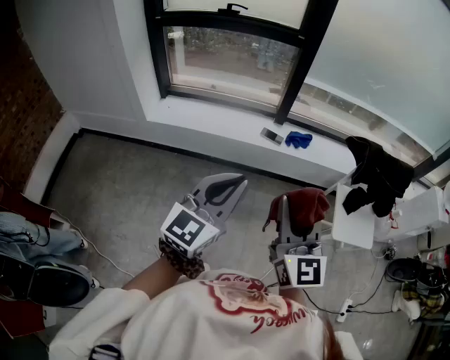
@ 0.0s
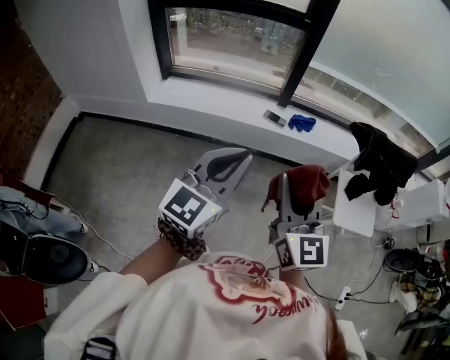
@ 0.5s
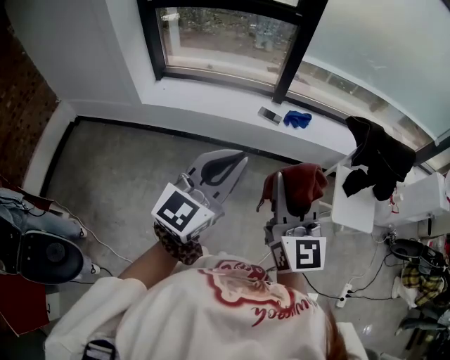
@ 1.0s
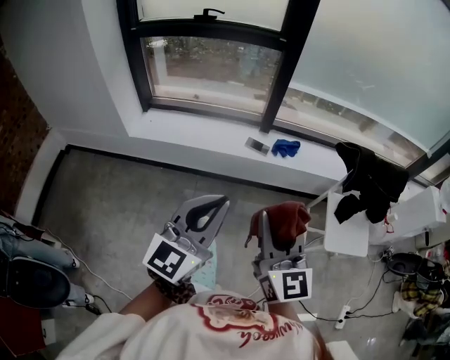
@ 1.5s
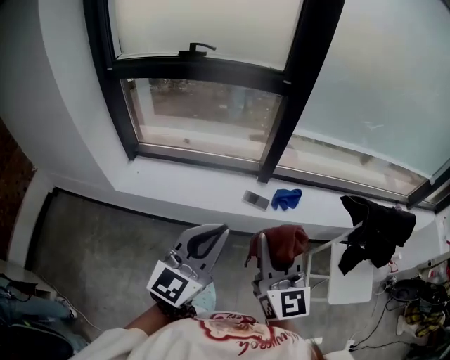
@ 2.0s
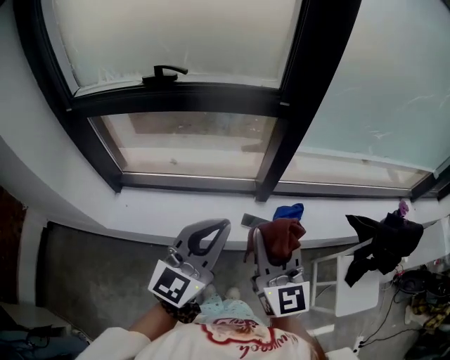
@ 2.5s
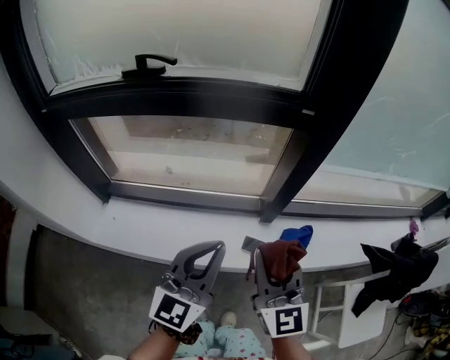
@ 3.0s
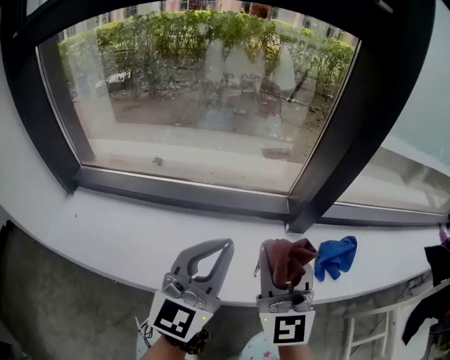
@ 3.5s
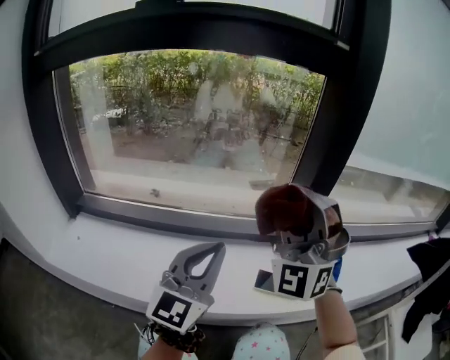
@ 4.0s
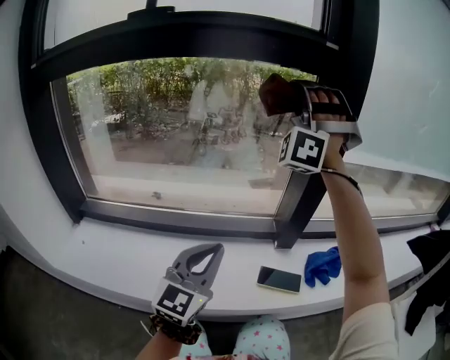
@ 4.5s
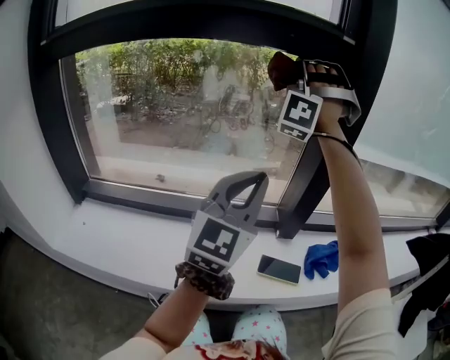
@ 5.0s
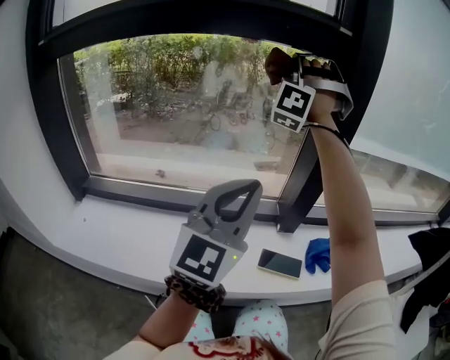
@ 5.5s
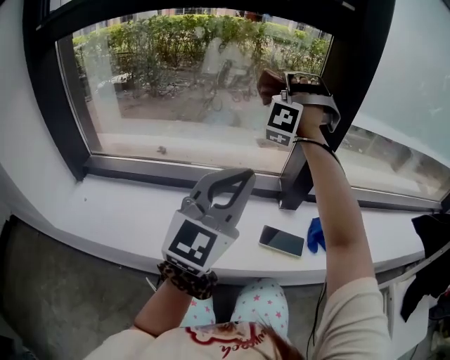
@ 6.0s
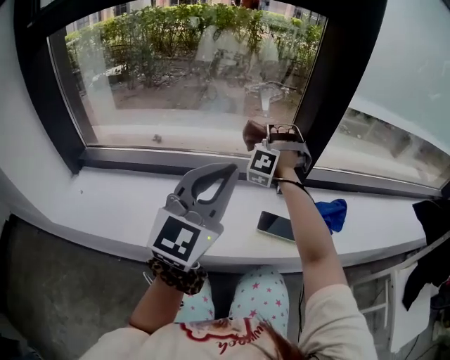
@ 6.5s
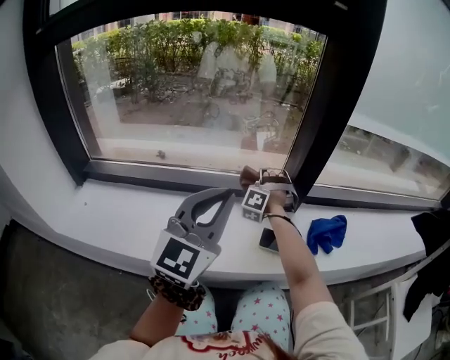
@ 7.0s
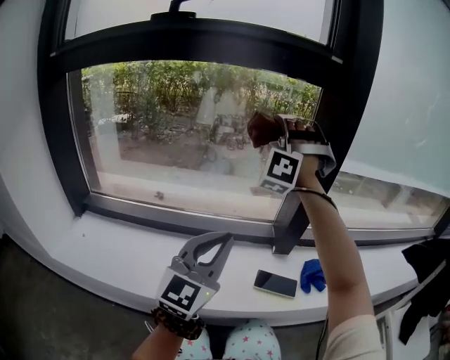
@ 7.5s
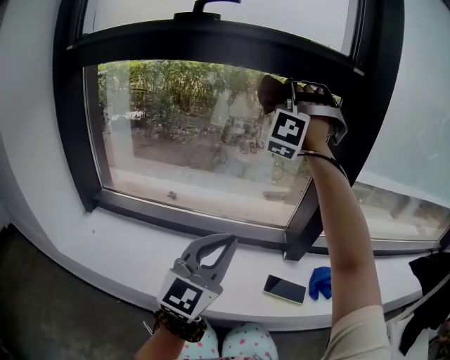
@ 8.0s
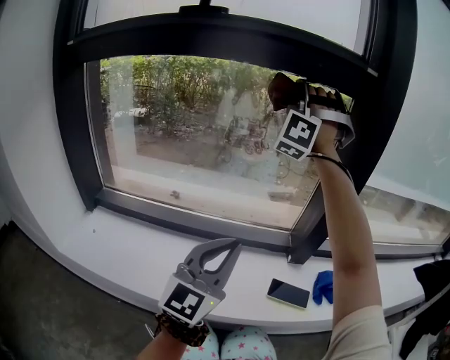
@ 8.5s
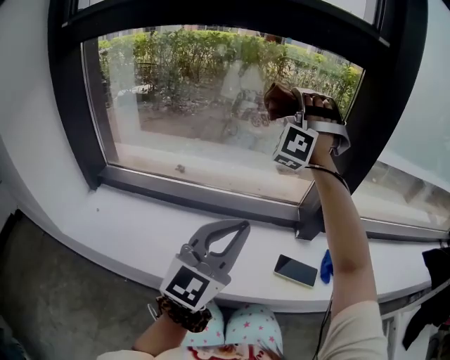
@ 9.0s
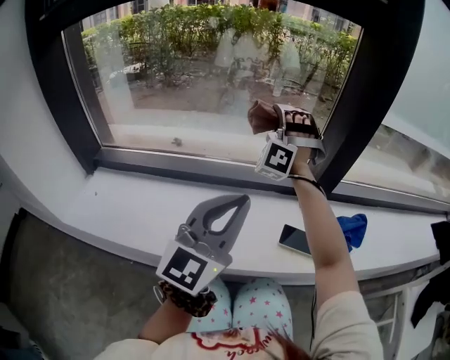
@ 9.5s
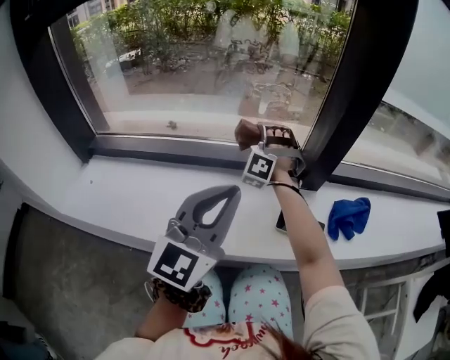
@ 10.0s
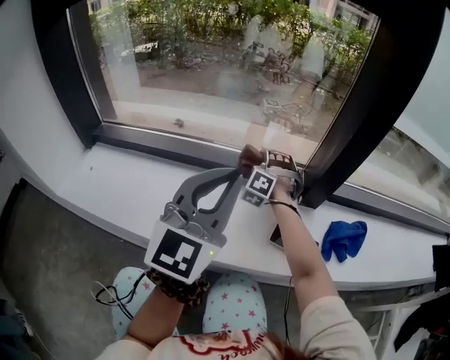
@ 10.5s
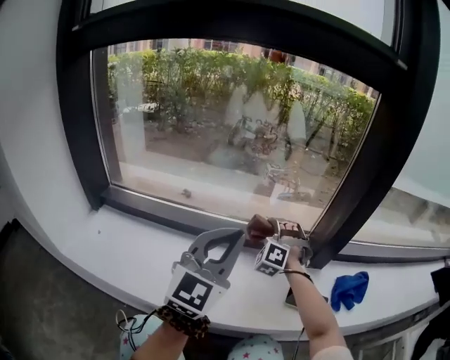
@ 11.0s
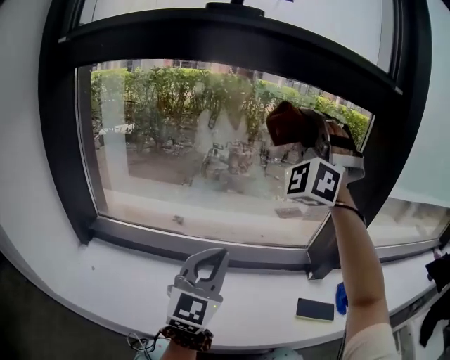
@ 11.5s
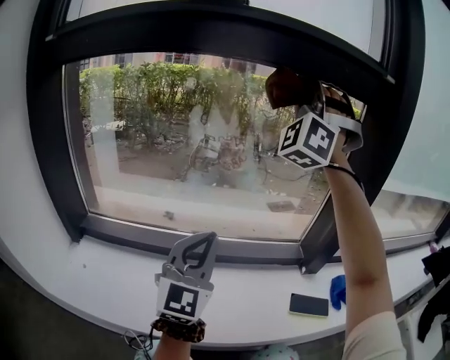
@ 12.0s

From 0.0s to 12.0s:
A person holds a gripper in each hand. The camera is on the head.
From 0.0s to 2.0s: The left gripper ends up about 30 cm from where it was.
From 2.0s to 4.0s: The left gripper shifts by about 50 cm.
From 4.0s to 6.0s: The left gripper is displaced upward by roughly 5 cm.
From 6.0s to 8.0s: The left gripper moves some 5 cm.
From 8.0s to 10.0s: The left gripper changes place by some 5 cm.
From 10.0s to 12.0s: The left gripper changes place by approximately 20 cm.

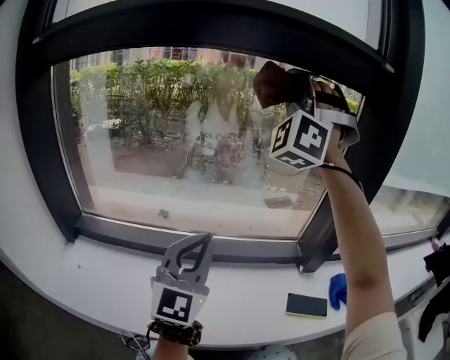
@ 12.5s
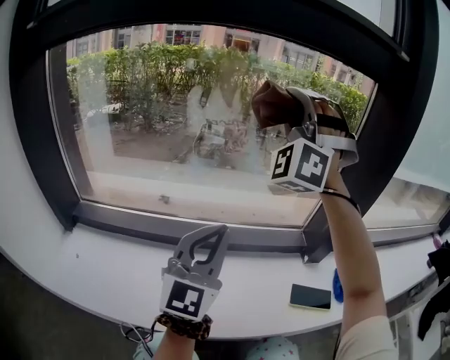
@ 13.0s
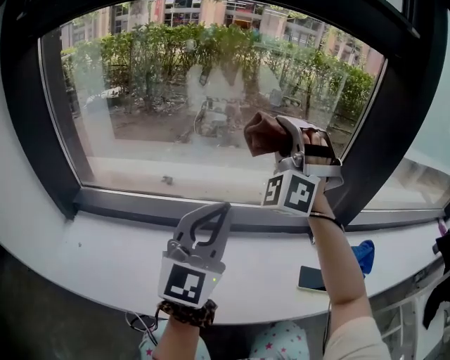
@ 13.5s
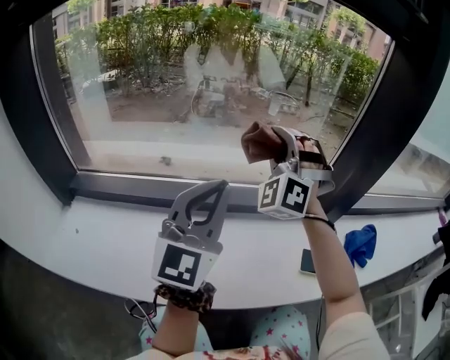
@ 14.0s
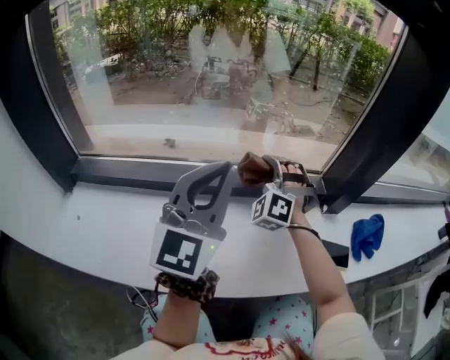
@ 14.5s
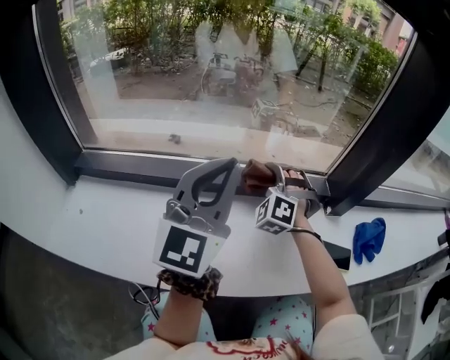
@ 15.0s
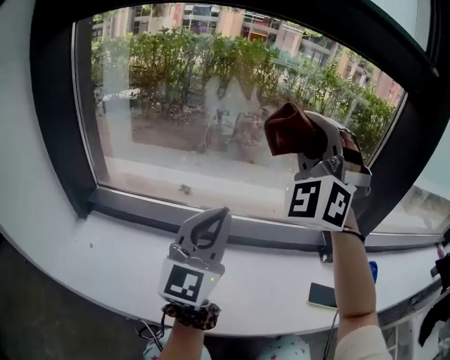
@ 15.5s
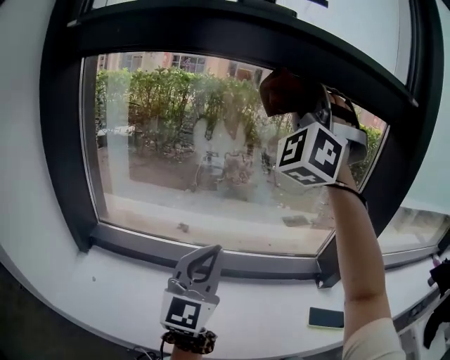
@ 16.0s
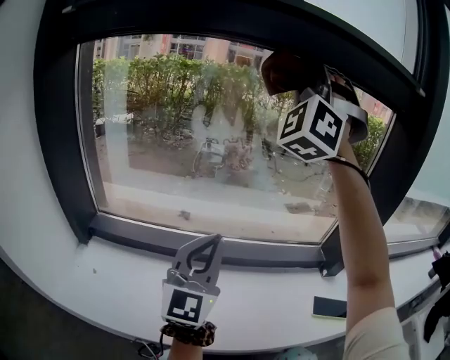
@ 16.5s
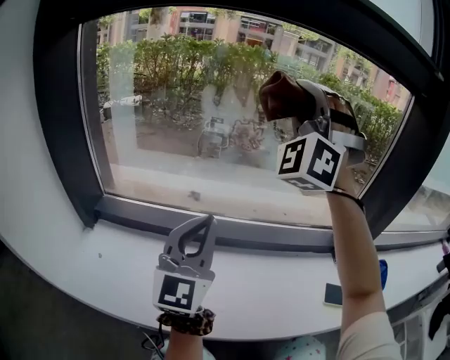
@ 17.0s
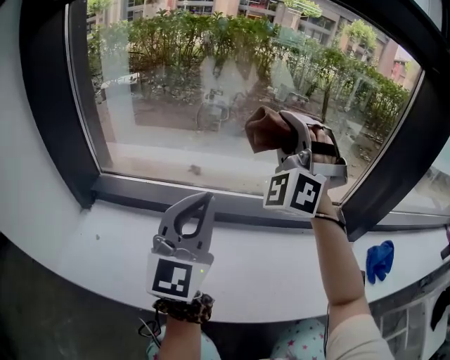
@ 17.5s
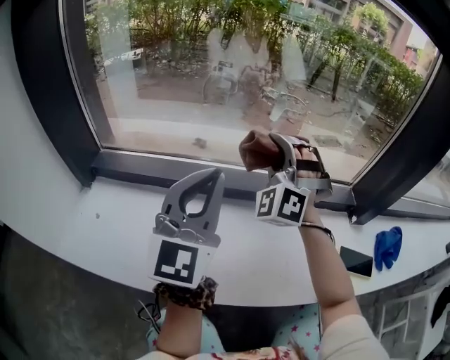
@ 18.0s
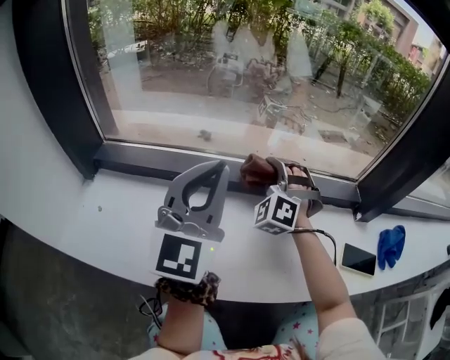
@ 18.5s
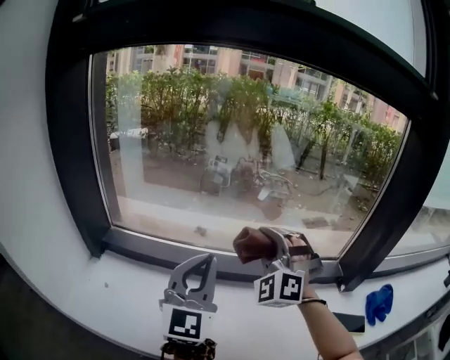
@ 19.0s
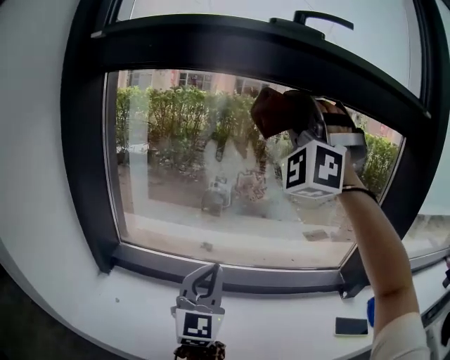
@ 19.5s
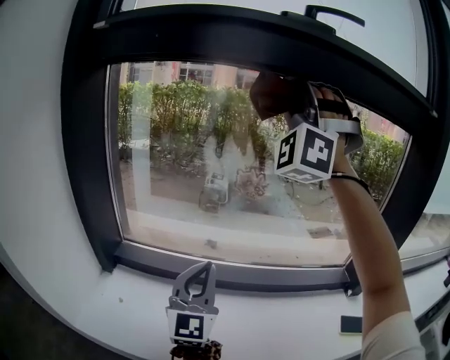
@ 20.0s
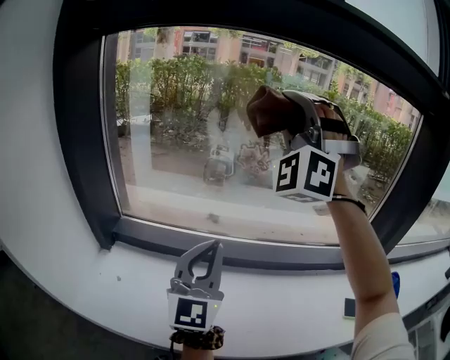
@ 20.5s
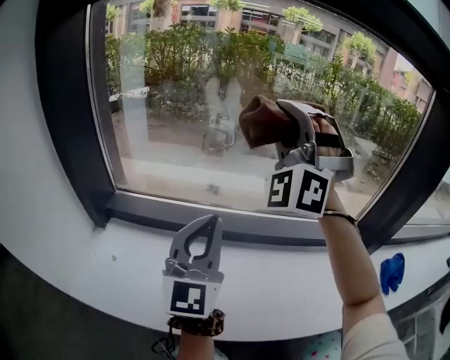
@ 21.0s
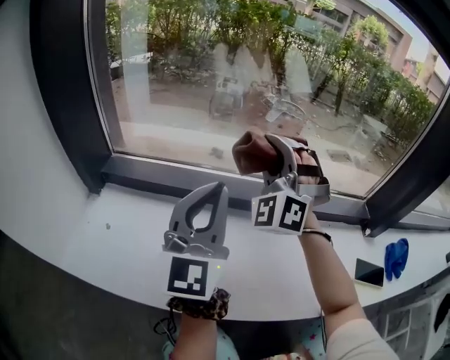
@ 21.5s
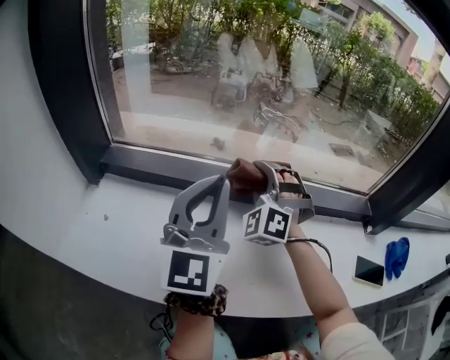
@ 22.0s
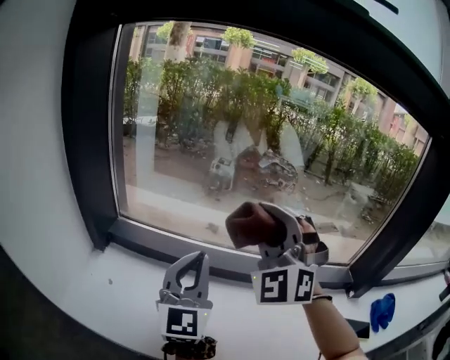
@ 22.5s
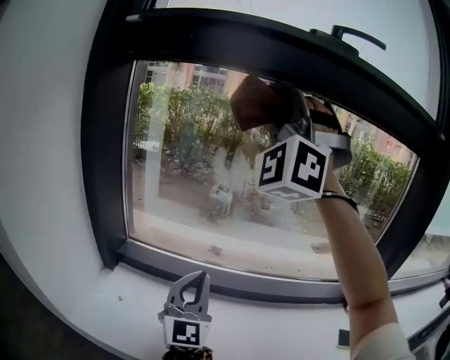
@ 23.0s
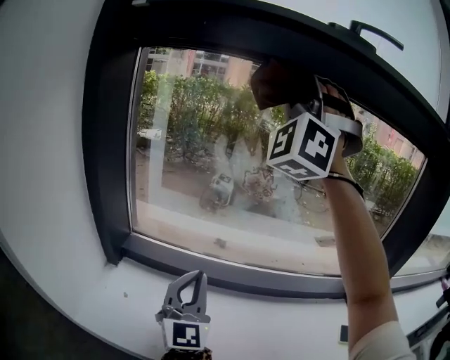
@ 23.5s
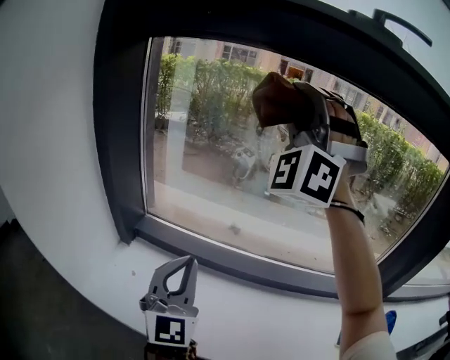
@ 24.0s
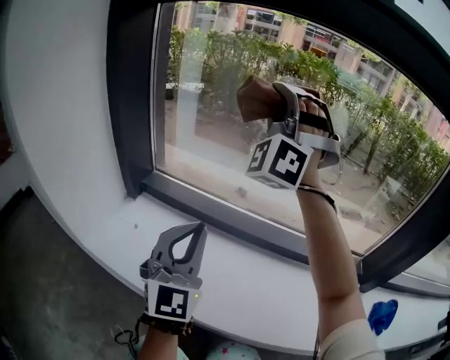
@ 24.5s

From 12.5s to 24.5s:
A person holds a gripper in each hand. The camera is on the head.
From 14.5s to 16.5s: The left gripper ends up approximately 10 cm from where it was.
From 18.5s to 20.5s: The left gripper moves roughly 5 cm.
From 22.5s to 24.5s: The left gripper changes place by approximately 10 cm, and turns by roughly 20 degrees.

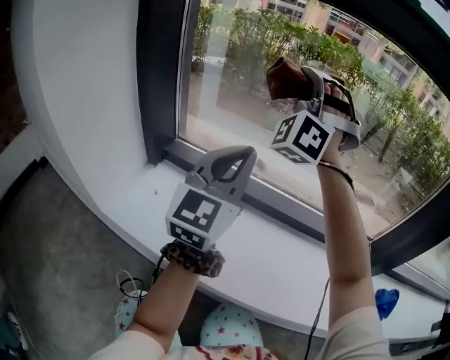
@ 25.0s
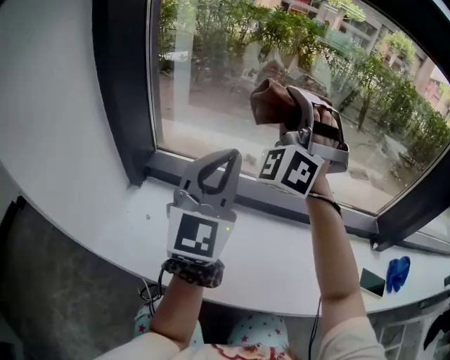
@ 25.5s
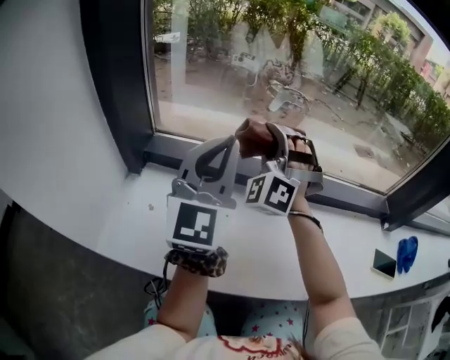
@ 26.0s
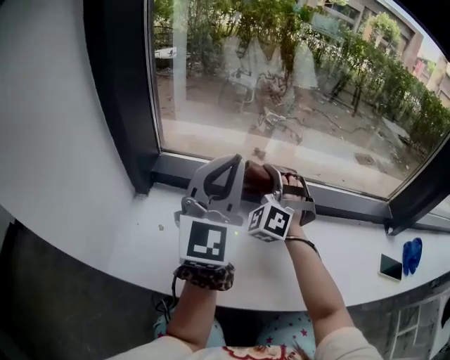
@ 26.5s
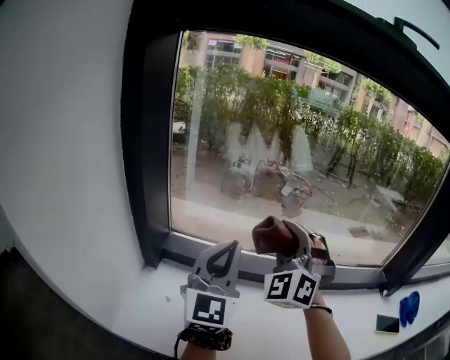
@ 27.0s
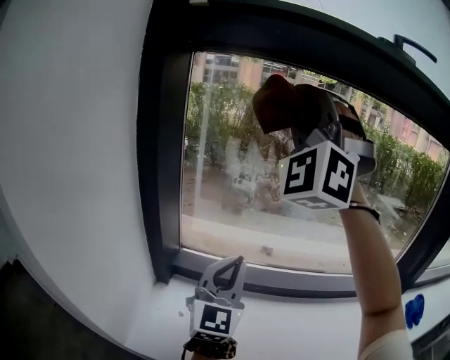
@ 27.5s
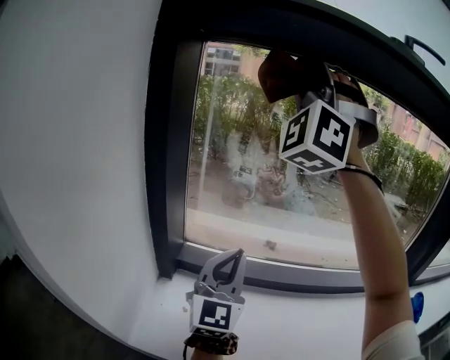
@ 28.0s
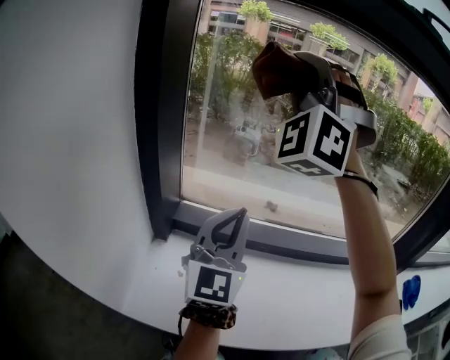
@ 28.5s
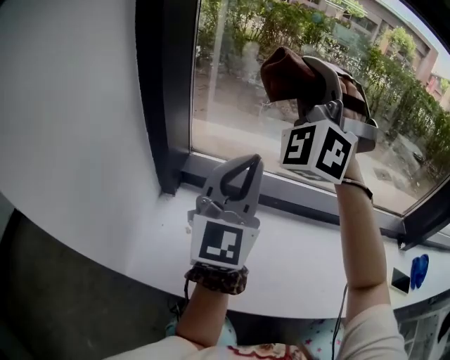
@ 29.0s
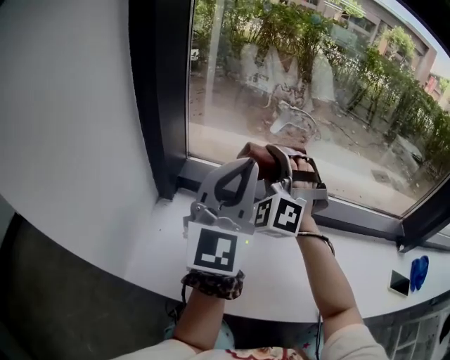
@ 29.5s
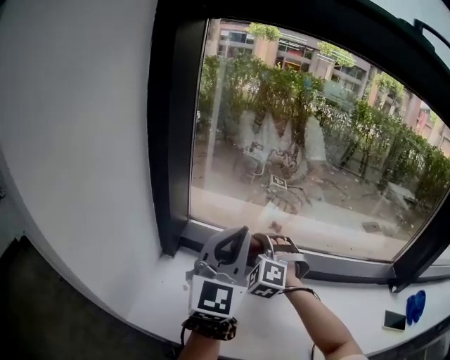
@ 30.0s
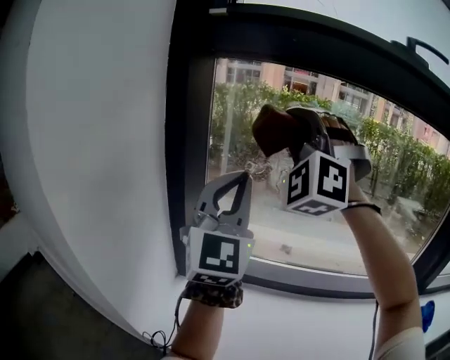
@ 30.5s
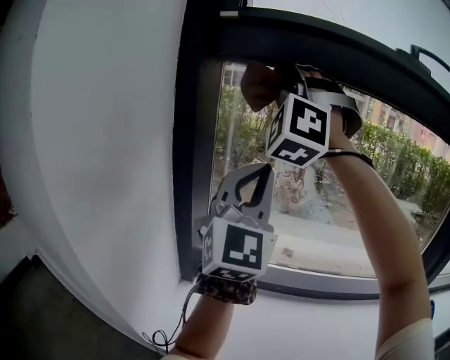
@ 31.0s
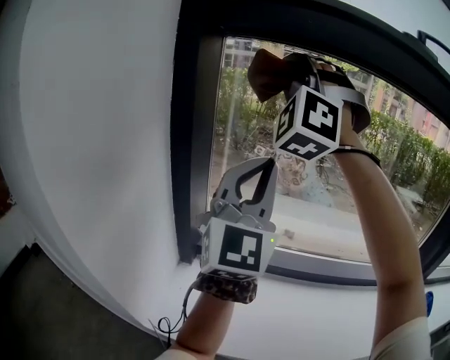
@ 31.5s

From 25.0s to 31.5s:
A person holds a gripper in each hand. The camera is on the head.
From 25.0s to 27.0s: The left gripper changes place by approximately 15 cm.
From 29.5s to 31.5s: The left gripper moves upward, roughly 15 cm.
